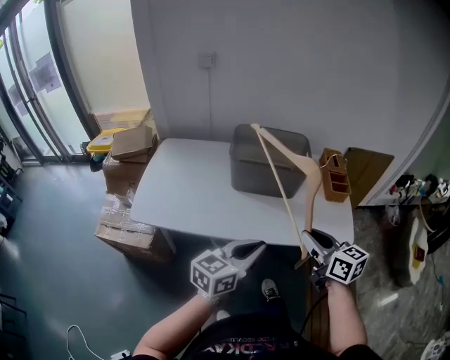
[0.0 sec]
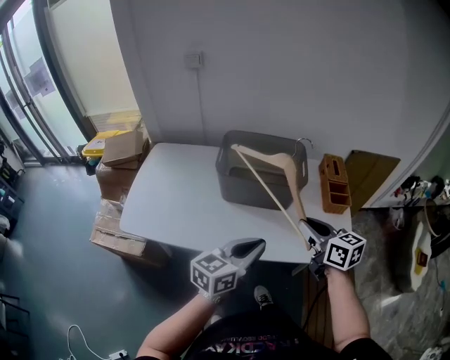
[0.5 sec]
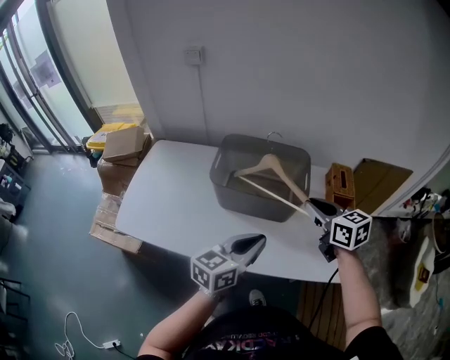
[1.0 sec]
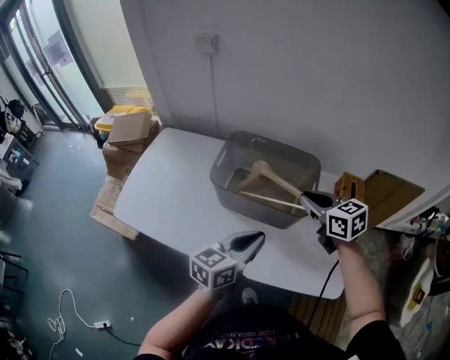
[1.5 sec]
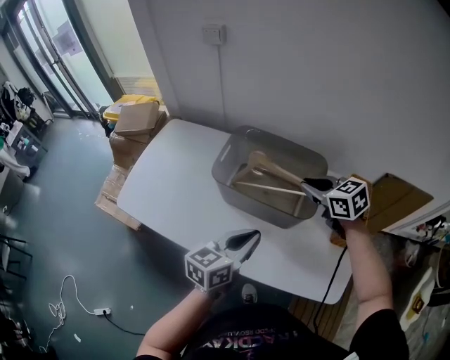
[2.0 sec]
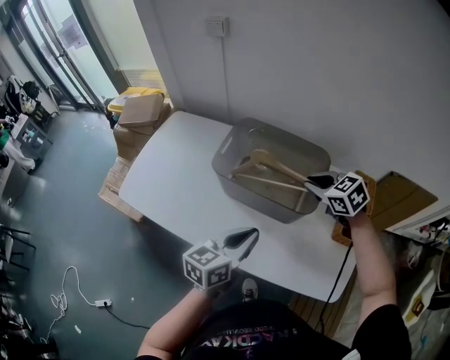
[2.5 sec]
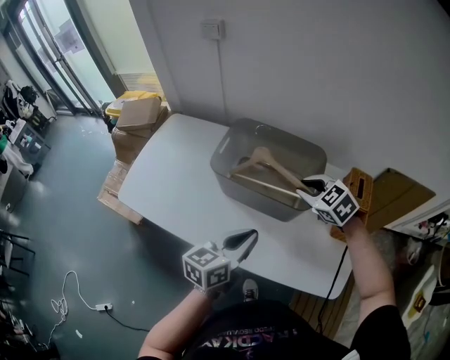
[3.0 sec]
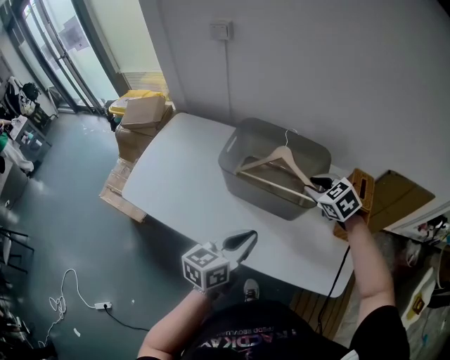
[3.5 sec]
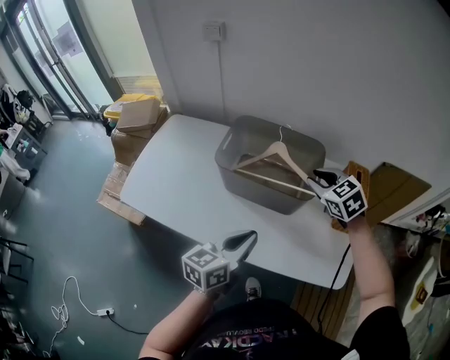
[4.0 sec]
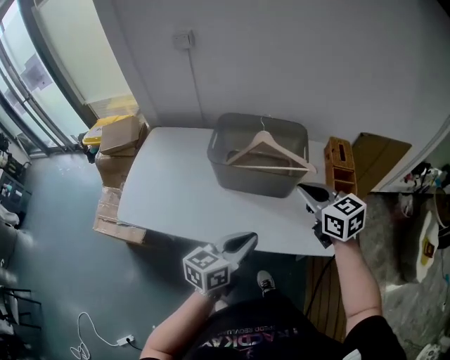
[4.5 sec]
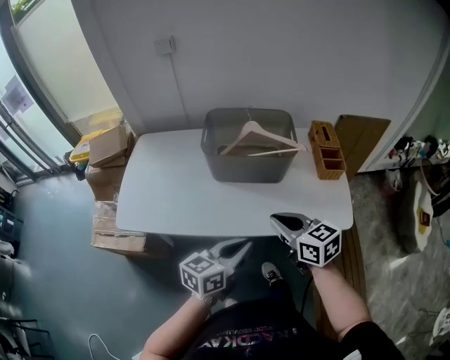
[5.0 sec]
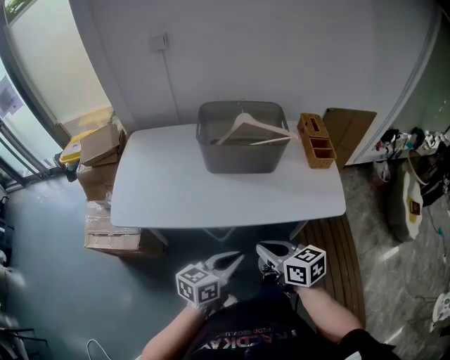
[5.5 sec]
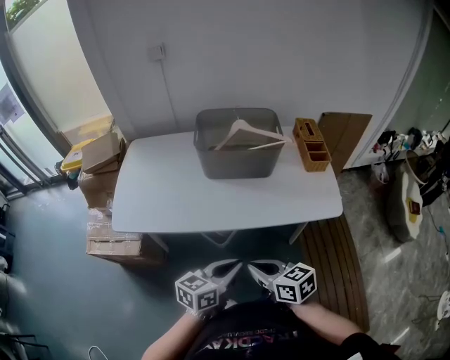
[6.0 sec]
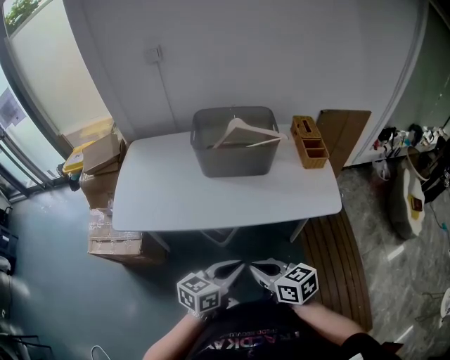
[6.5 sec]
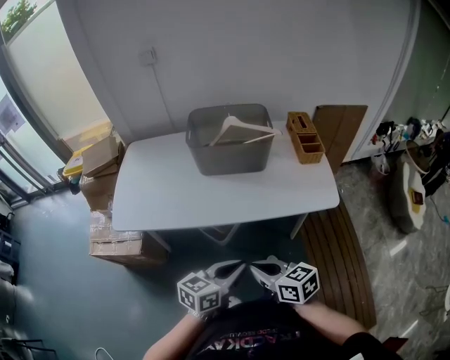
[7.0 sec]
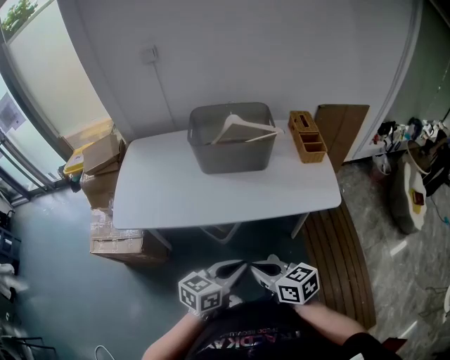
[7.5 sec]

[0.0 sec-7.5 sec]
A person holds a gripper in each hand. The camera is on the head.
0.0 sec to 2.0 sec: The right gripper travels forward by approximately 40 cm, and turns by some 40 degrees, while the left gripper goes about 25 cm forward, and changes its angle by approximately 20 degrees.
2.0 sec to 4.0 sec: The left gripper shifts approximately 5 cm backward. Meanwhile the right gripper turns by approximately 20 degrees.
4.0 sec to 5.5 sec: The left gripper travels backward by some 20 cm, and swivels roughly 30 degrees. Meanwhile the right gripper moves backward, about 40 cm, twists approximately 50 degrees clockwise, seen from behind, and closes up.
5.5 sec to 7.5 sec: The right gripper moves backward, about 10 cm. The left gripper is displaced backward by about 5 cm.

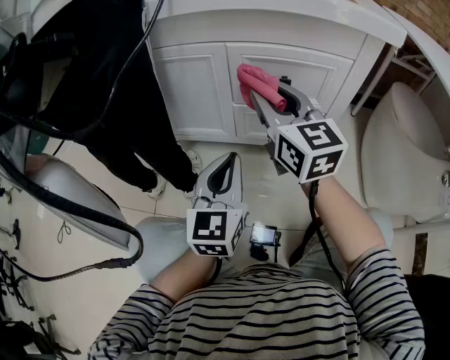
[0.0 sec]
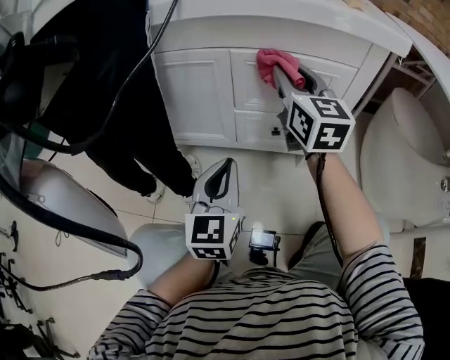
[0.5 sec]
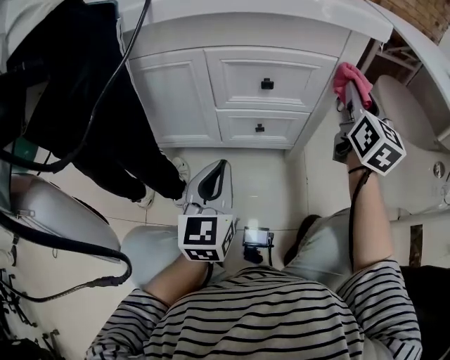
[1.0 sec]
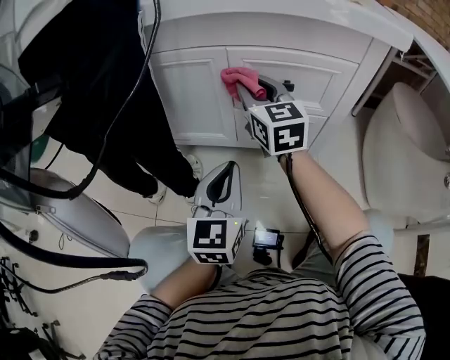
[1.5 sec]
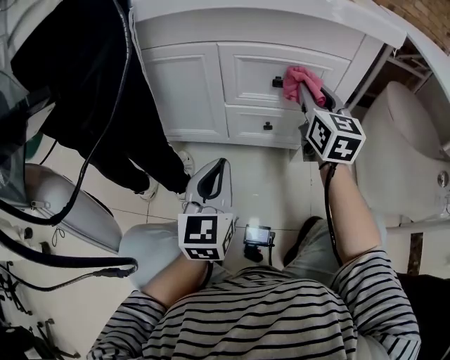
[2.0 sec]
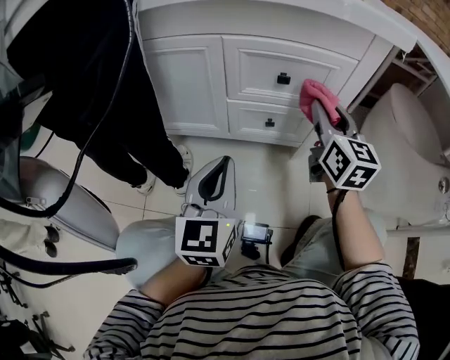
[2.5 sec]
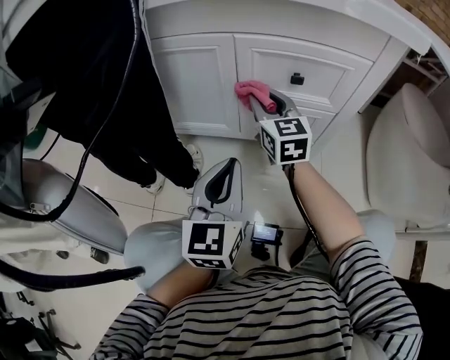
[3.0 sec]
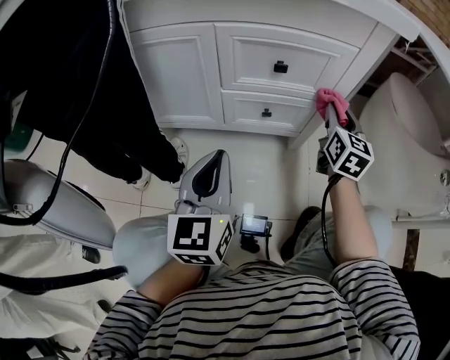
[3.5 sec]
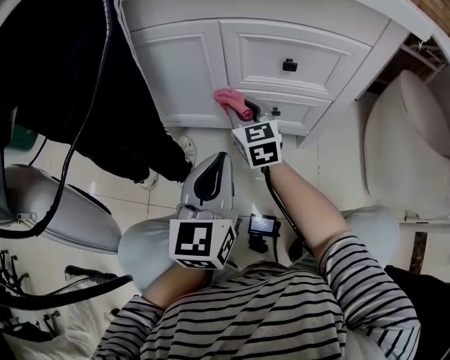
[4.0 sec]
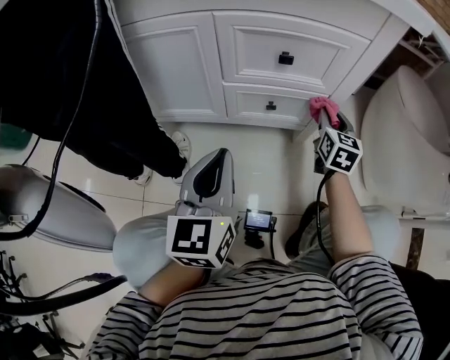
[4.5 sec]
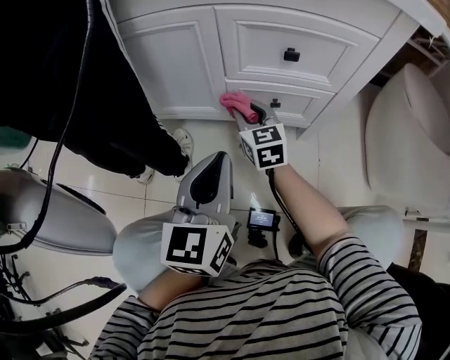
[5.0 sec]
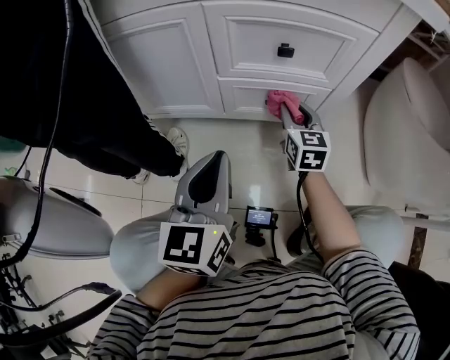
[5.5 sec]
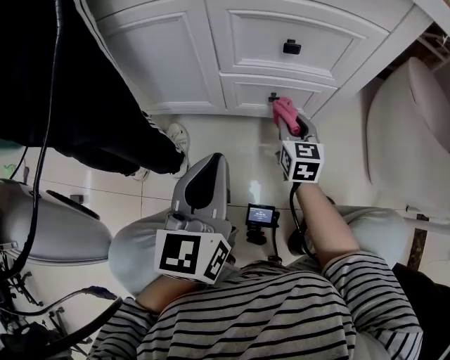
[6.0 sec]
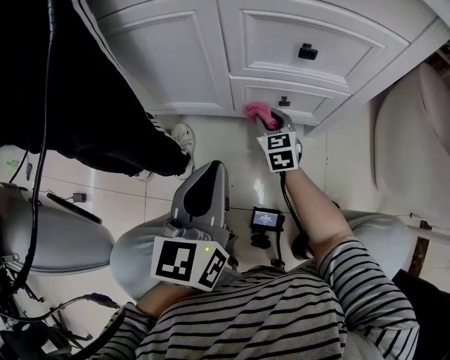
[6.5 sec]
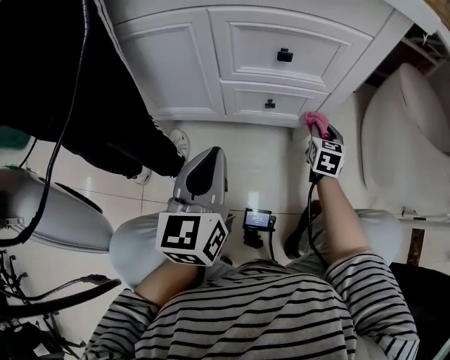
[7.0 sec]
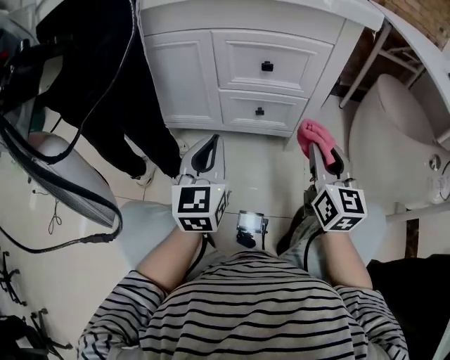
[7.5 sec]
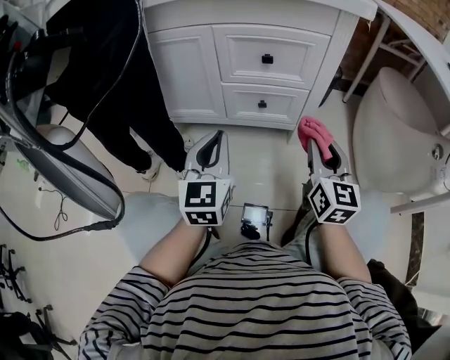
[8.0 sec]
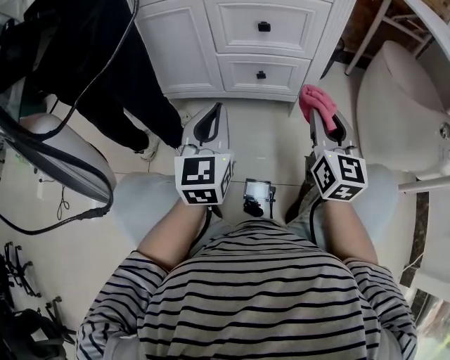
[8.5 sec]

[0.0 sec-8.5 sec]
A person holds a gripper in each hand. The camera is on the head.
0.0 sec to 2.0 sec: The right gripper goes left and right, approximately 30 cm each way, reversing 2 times, and swivels some 20 degrees.
2.0 sec to 4.0 sec: The right gripper goes left and right, roughly 30 cm each way, reversing 2 times.
4.0 sec to 6.5 sec: The right gripper swings left and right, approximately 30 cm each way, with 3 reversals.
6.5 sec to 8.5 sec: The left gripper moves approximately 5 cm, and rotates some 20 degrees, while the right gripper heads upward, backward and to the right, covering some 40 cm, and swivels roughly 30 degrees.

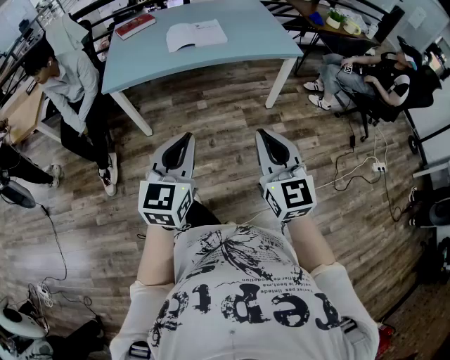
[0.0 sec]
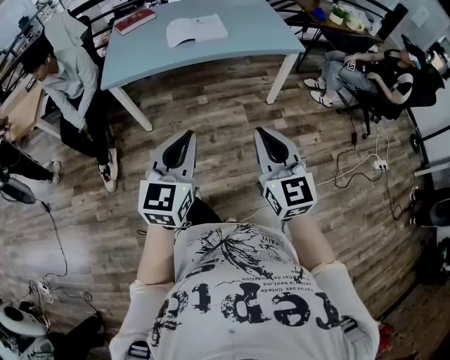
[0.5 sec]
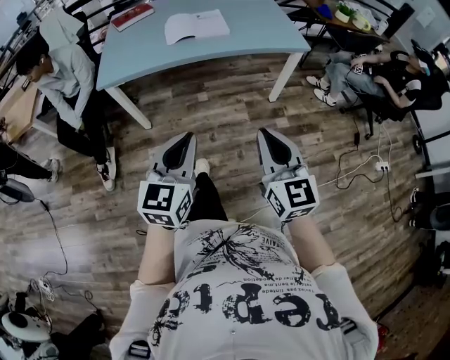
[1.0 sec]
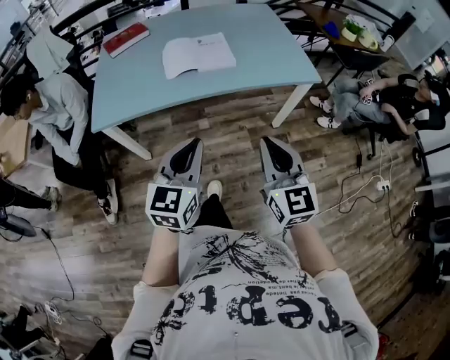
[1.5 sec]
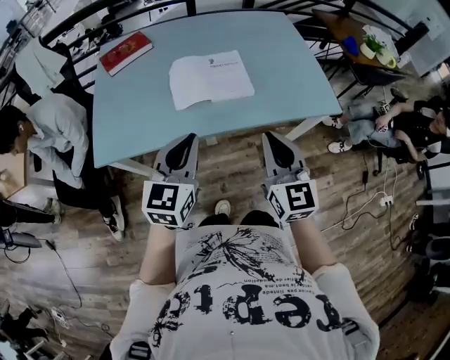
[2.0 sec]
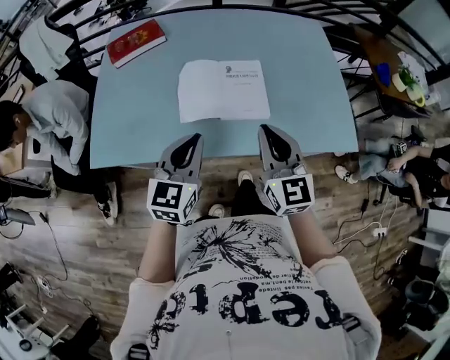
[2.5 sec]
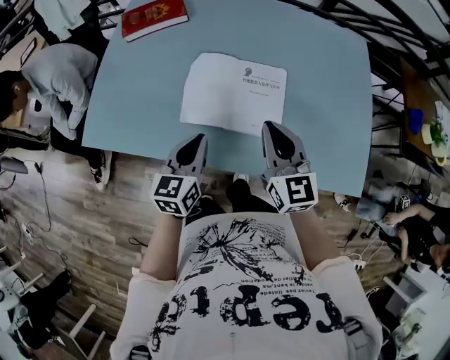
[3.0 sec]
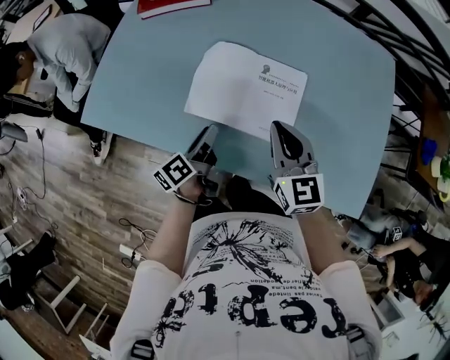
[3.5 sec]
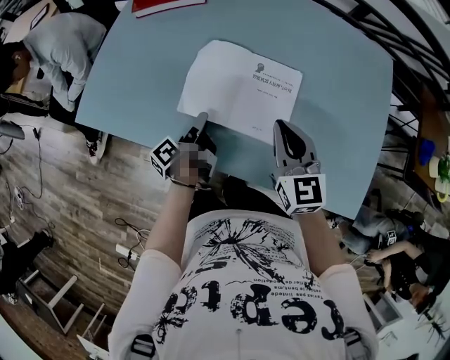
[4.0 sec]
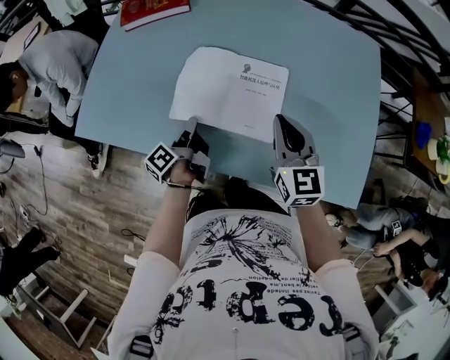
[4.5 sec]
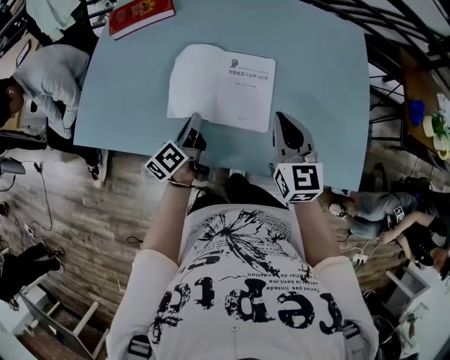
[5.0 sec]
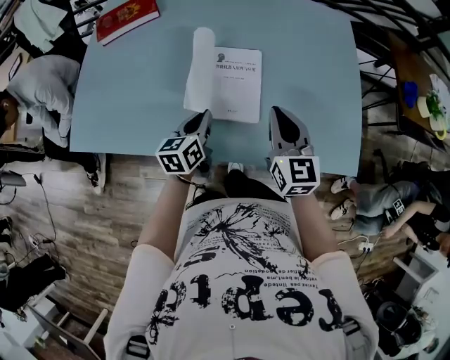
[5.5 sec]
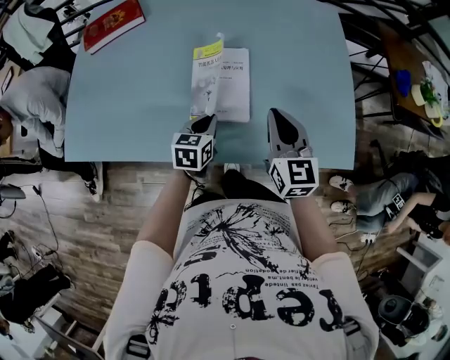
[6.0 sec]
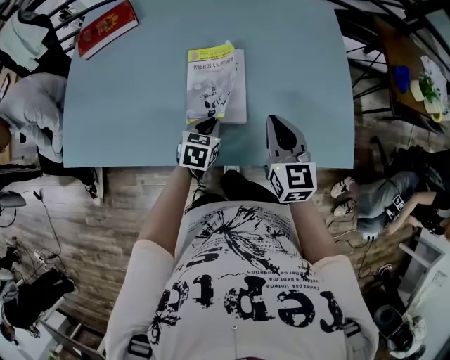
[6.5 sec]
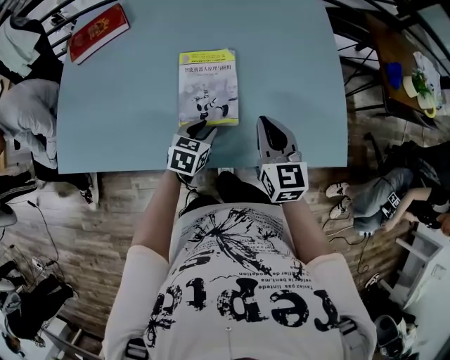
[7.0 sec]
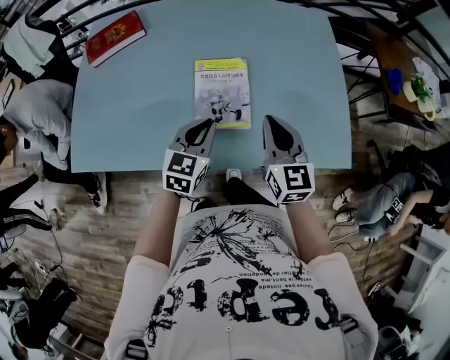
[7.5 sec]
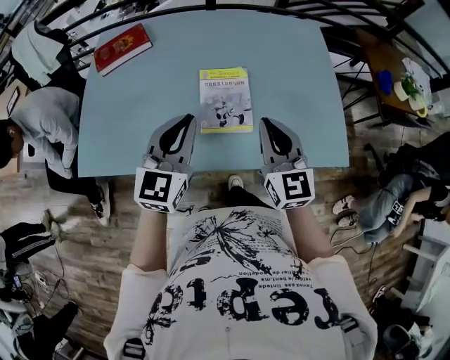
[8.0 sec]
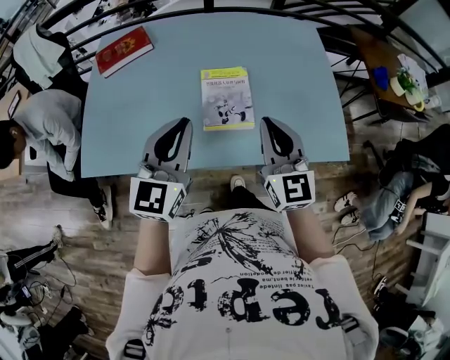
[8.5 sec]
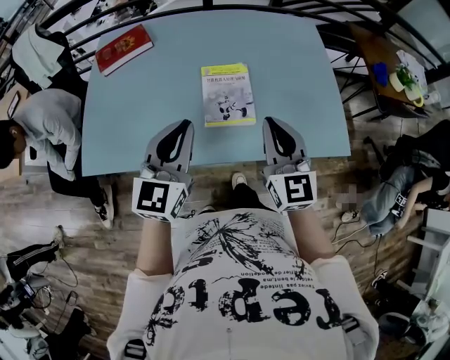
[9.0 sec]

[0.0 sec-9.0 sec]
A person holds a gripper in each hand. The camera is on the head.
0.0 sec to 2.0 sec: Both grippers are carried forward, about 50 cm.
2.0 sec to 4.5 sec: The right gripper ends up approximately 35 cm from where it was, and turns by some 30 degrees. Meanwhile the left gripper is displaced downward by some 25 cm, rotates around the line of its fingers by some 90 degrees, counterclockwise from behind, and opens, then closes again.
4.5 sec to 7.0 sec: The left gripper moves approximately 20 cm, rotates around the line of its fingers by roughly 80 degrees, clockwise from behind, and opens. Meanwhile the right gripper changes place by roughly 10 cm.
7.0 sec to 9.0 sec: The right gripper goes roughly 20 cm upward, backward and to the left. Meanwhile the left gripper shifts roughly 30 cm upward, points its fingers some 40 degrees further upward, and closes up.

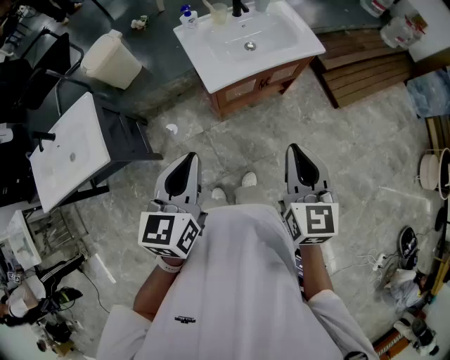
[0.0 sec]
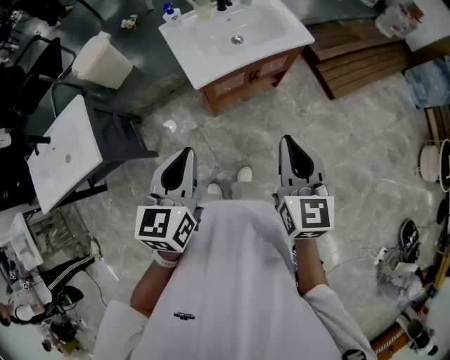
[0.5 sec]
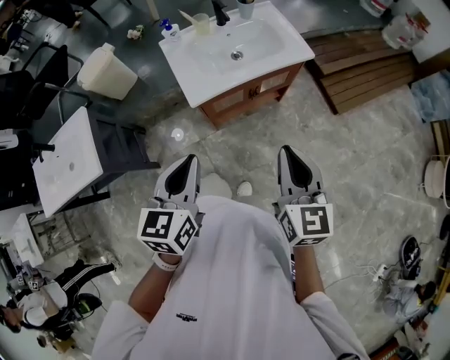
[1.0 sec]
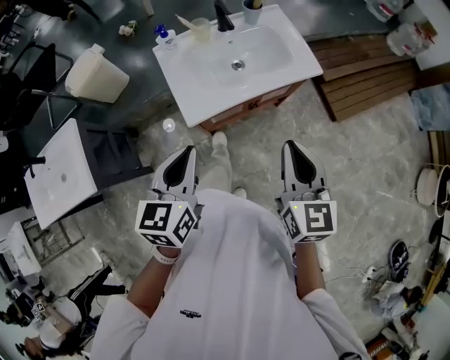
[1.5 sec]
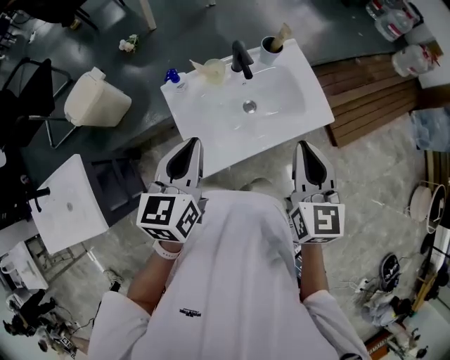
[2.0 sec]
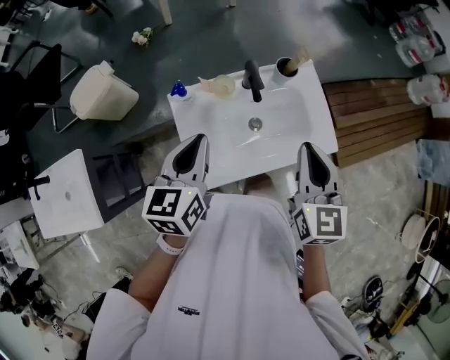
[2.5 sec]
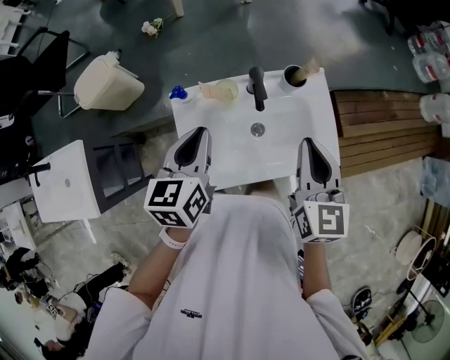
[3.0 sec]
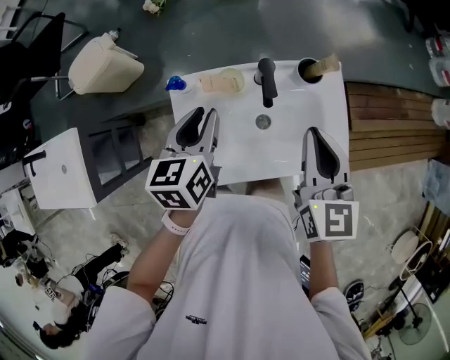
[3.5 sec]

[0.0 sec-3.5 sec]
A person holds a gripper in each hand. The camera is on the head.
0.0 sec to 2.0 sec: The two grippers go some 40 cm forward.
2.0 sec to 3.5 sec: The left gripper shifts approximately 20 cm forward and downward, rotates some 20 degrees, and opens up; the right gripper heads forward, covering some 20 cm.
